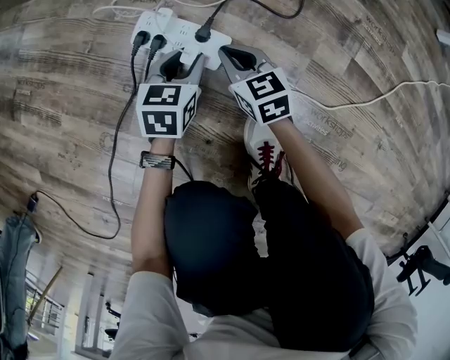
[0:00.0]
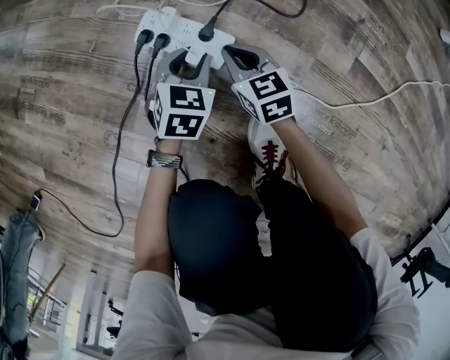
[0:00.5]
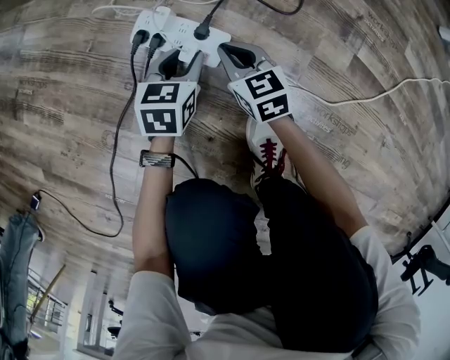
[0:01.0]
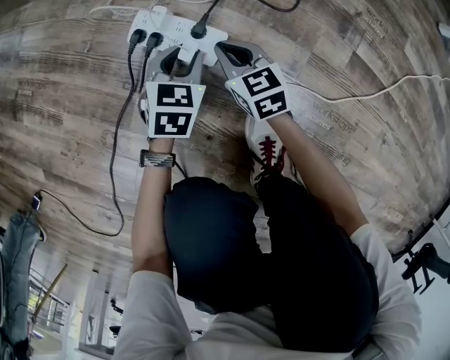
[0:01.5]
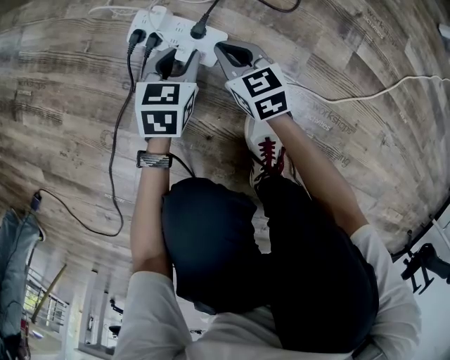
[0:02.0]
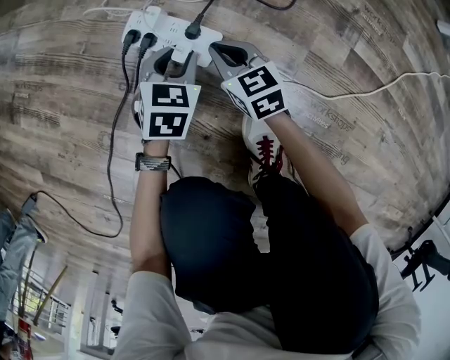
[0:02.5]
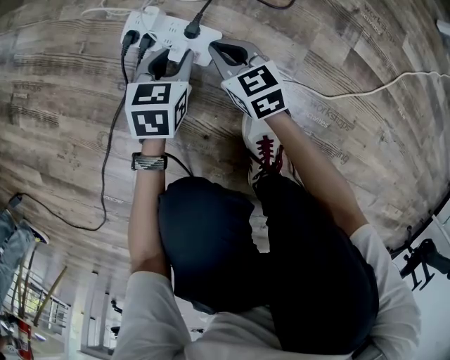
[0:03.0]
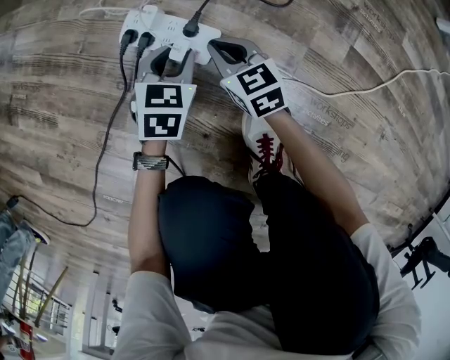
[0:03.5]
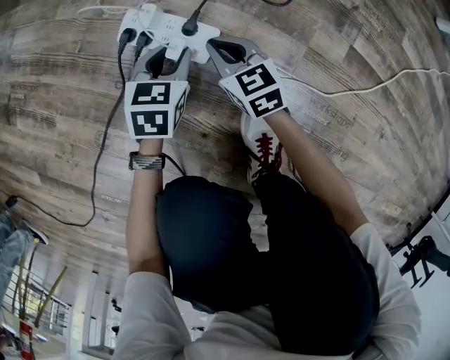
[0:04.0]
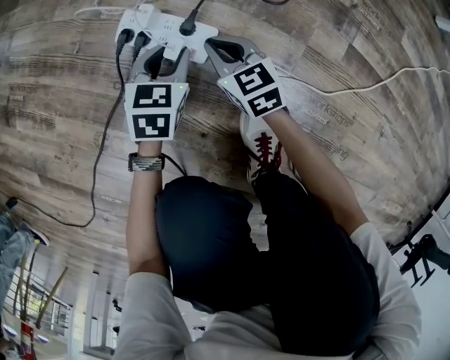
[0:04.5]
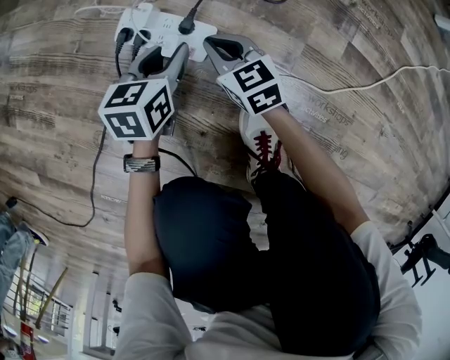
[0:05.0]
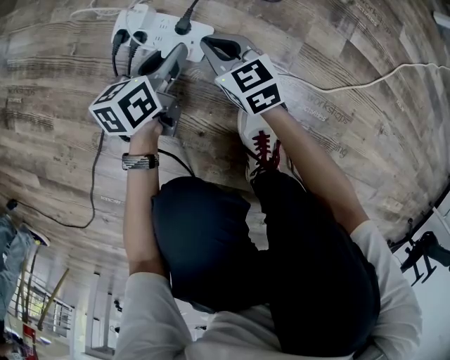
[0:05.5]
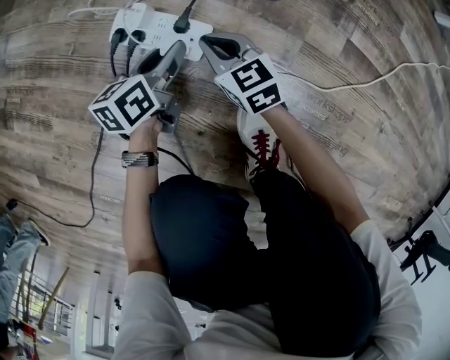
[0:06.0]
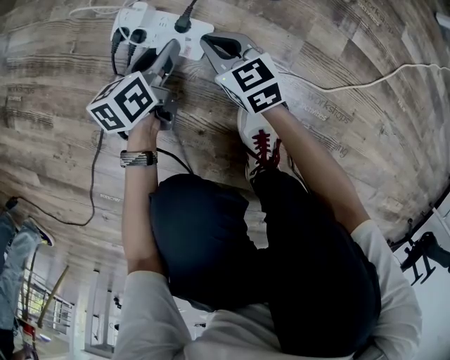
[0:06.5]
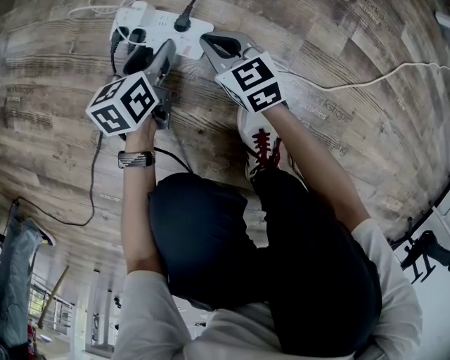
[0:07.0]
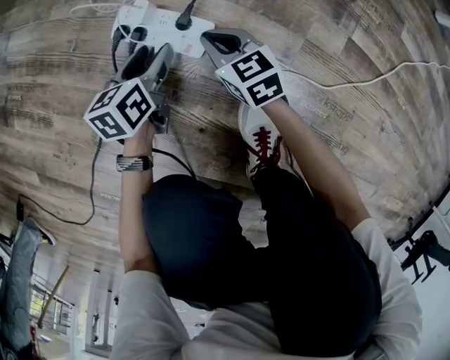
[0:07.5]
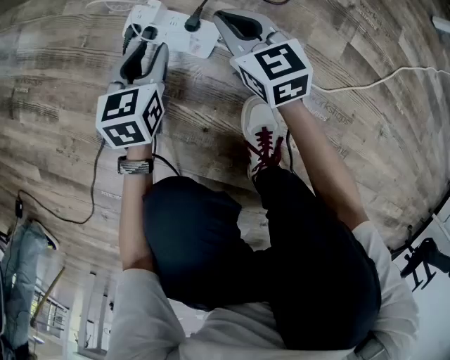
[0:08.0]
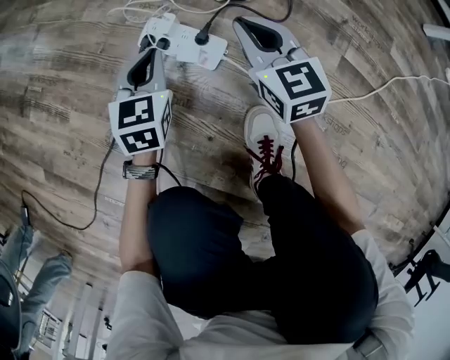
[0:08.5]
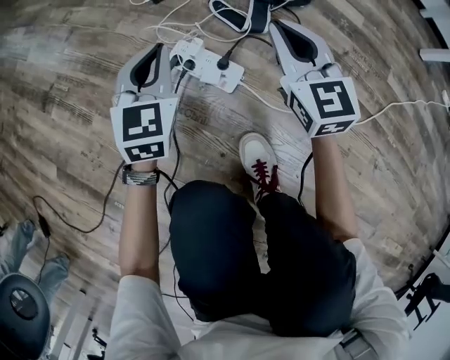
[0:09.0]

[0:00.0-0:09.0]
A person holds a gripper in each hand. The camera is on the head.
0:00.0 to 0:04.5: The grippers make only small movements.
0:04.5 to 0:07.0: The left gripper turns by some 30 degrees, and opens up.
0:07.0 to 0:09.0: The grippers both shift upward by approximately 25 cm. The left gripper rotates some 50 degrees, and closes its fingers, while the right gripper swivels roughly 30 degrees.

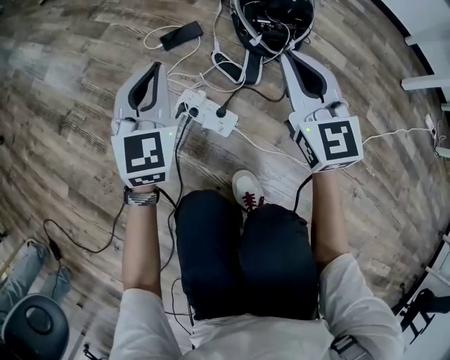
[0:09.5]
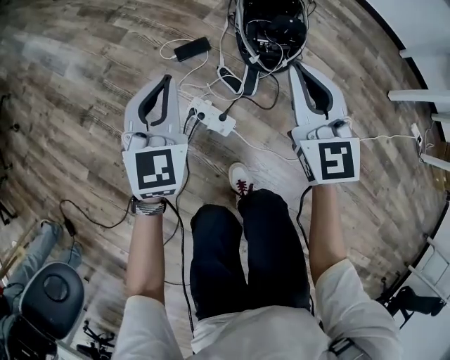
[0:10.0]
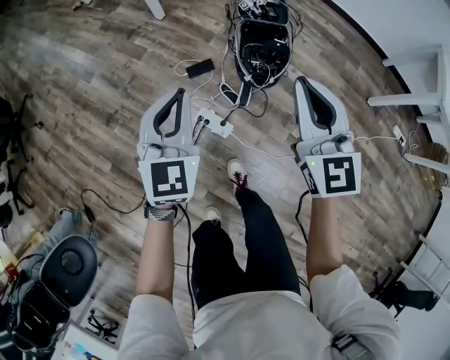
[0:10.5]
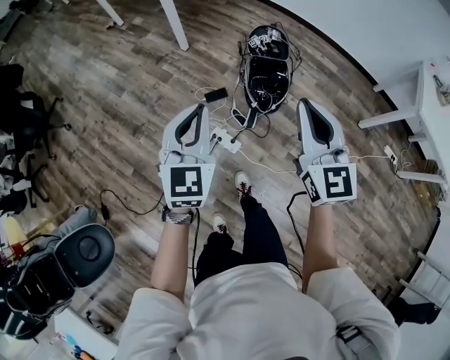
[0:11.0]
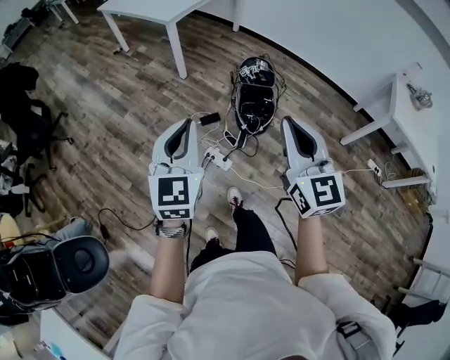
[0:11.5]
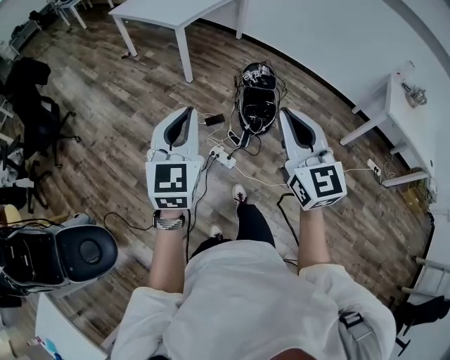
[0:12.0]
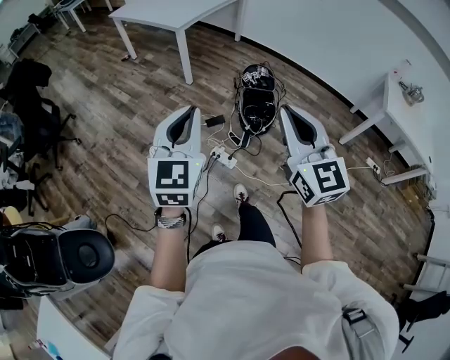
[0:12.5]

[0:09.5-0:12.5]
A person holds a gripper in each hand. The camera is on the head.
0:09.5 to 0:11.0: Both grippers move upward, approximately 60 cm.
0:11.0 to 0:12.5: Both grippers travel together backward, upward and to the left, some 30 cm.

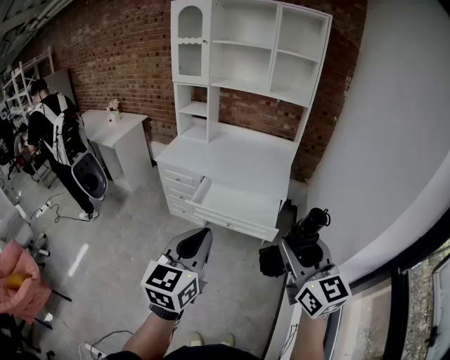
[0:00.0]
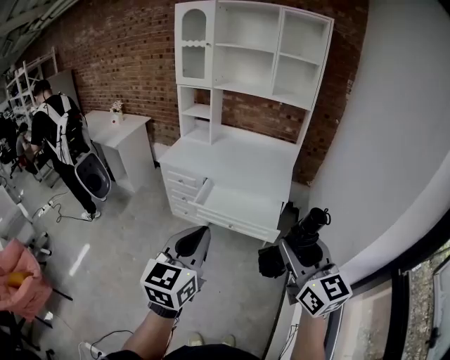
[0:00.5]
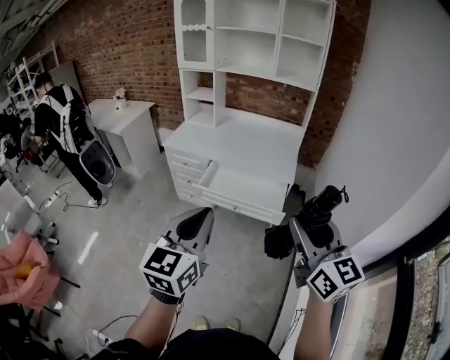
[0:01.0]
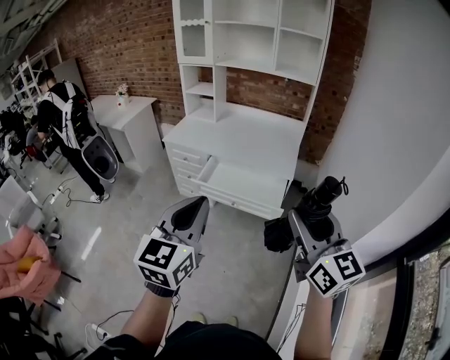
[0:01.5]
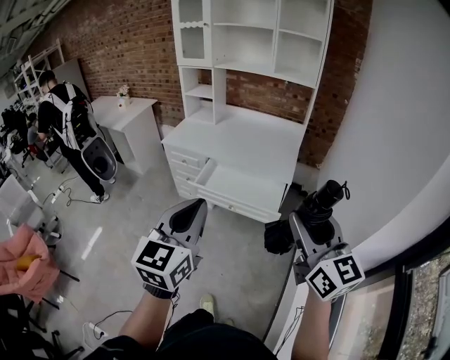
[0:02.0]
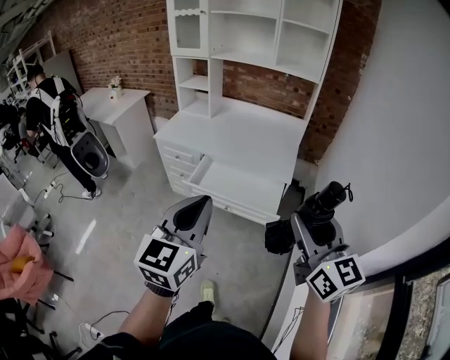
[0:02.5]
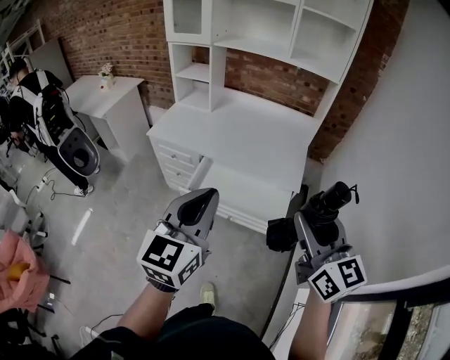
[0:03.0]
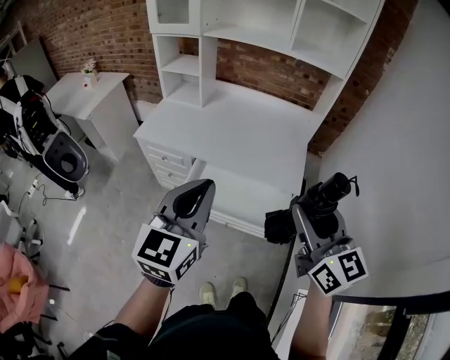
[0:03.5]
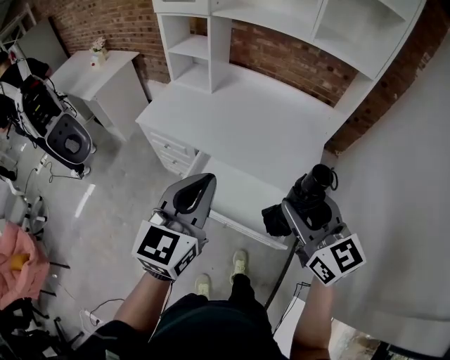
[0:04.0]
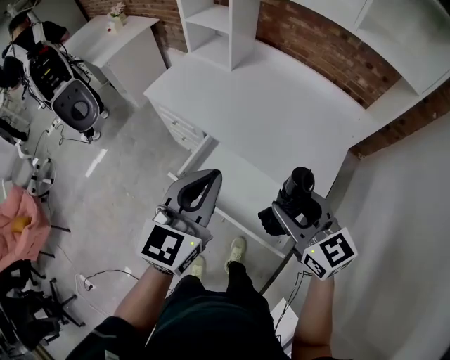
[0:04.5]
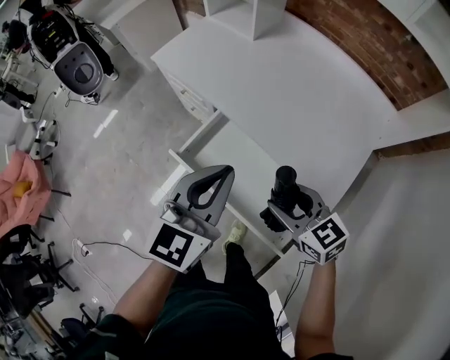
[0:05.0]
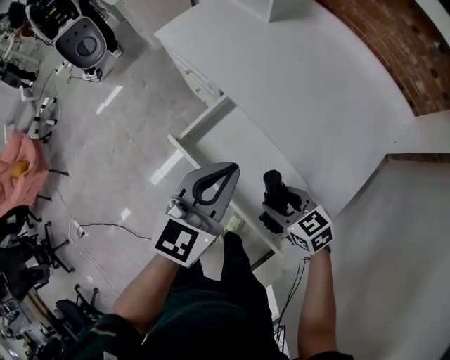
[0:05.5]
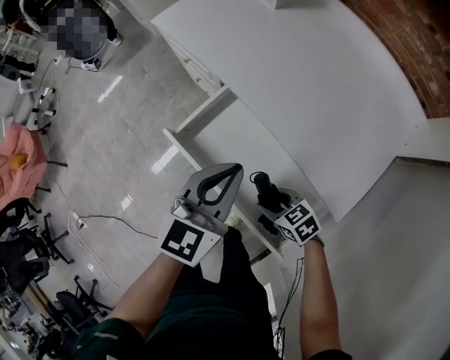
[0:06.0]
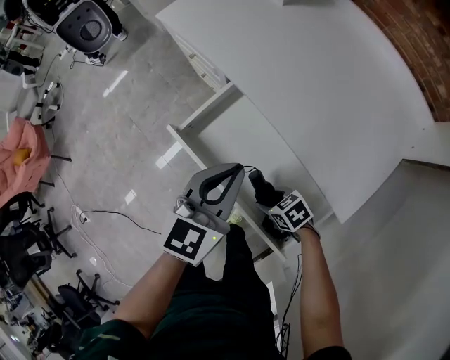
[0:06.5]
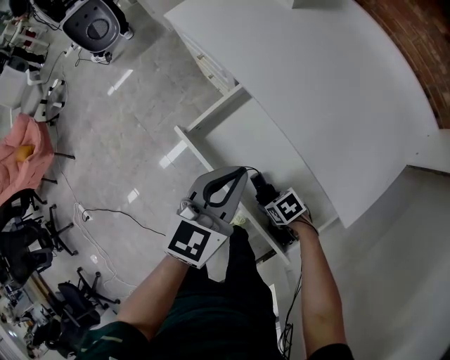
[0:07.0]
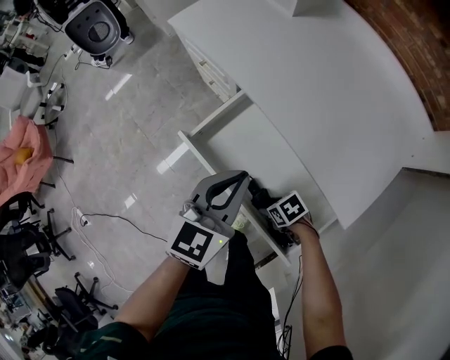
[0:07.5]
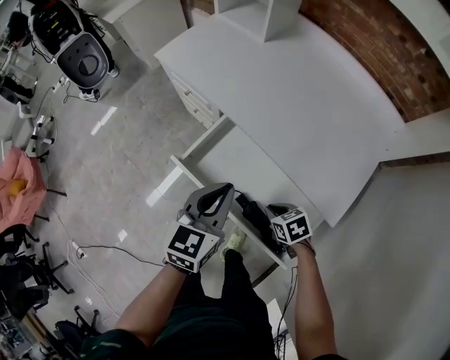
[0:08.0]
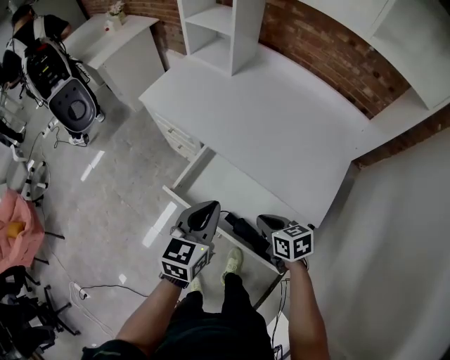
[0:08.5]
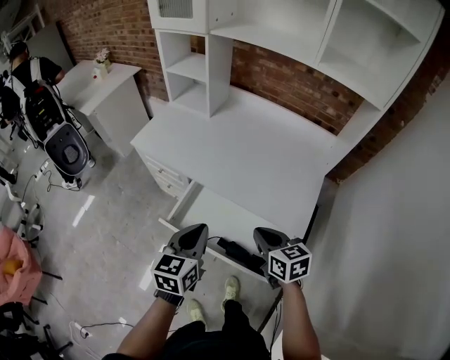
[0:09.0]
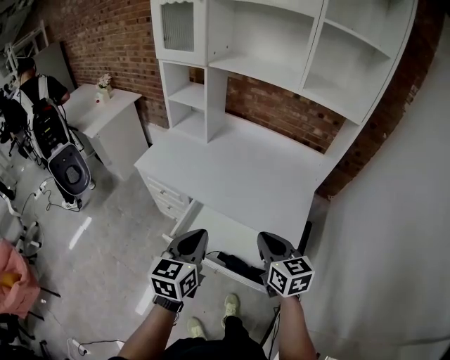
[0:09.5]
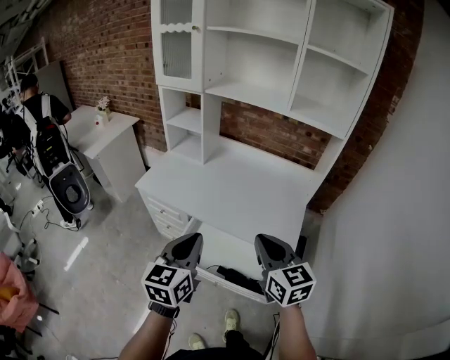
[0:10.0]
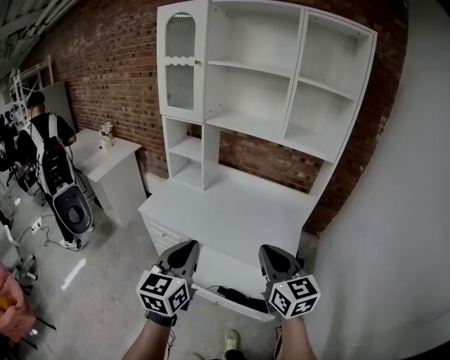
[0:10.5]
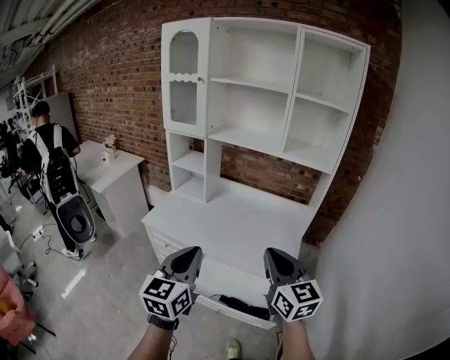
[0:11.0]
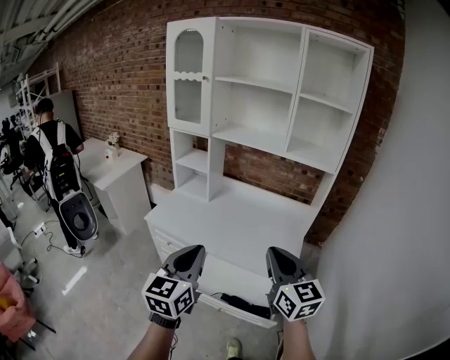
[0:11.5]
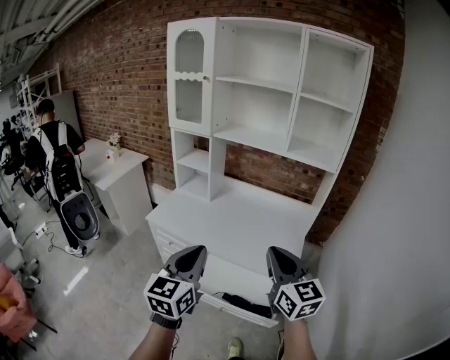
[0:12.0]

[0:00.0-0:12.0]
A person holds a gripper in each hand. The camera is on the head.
0:00.0 to 0:02.0: The two grippers go some 5 cm to the right.
0:02.0 to 0:04.0: The pair of grippers is taken forward, about 40 cm. The right gripper swivels approximately 20 degrees.
0:04.0 to 0:06.0: The left gripper heads downward, covering some 25 cm, while the right gripper heads downward, covering about 50 cm, and points its fingers about 40 degrees further downward.
0:06.0 to 0:08.0: The right gripper goes downward and returns, roughly 10 cm each way, rotates approximately 20 degrees, and closes its fingers.
0:08.0 to 0:10.0: The right gripper is displaced upward by about 40 cm, and tips its fingers upward by roughly 50 degrees, while the left gripper heads upward, covering about 25 cm.
0:10.0 to 0:12.0: Both grippers travel together upward, some 10 cm.

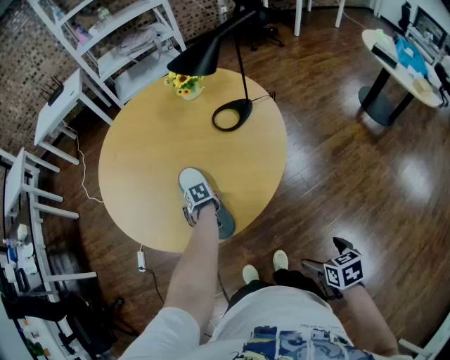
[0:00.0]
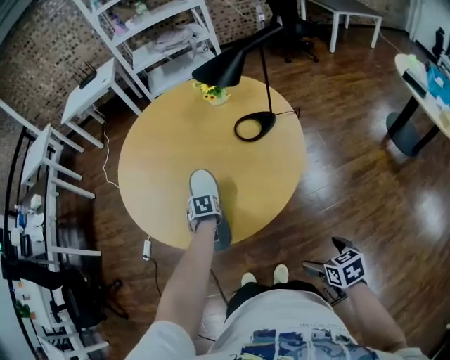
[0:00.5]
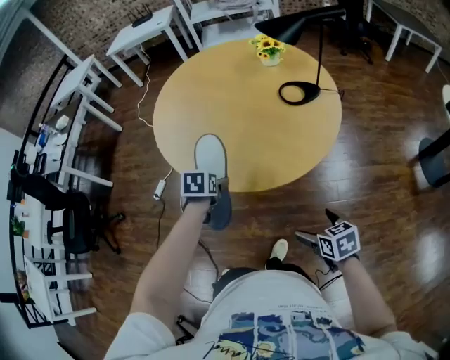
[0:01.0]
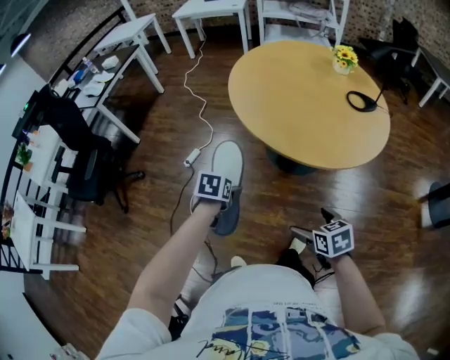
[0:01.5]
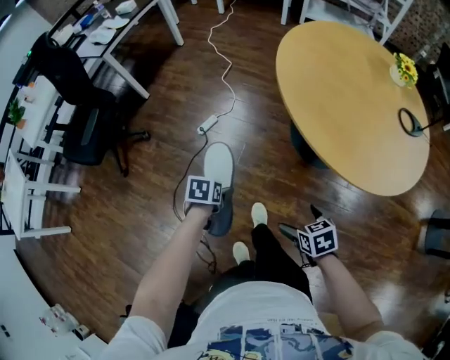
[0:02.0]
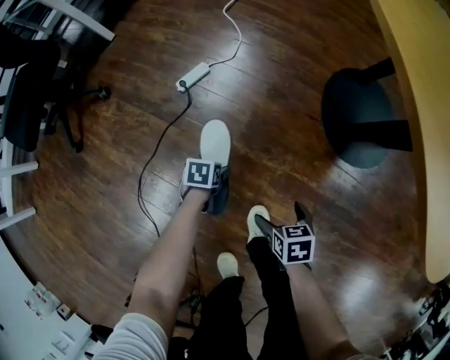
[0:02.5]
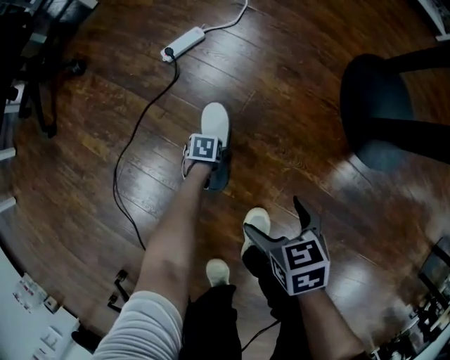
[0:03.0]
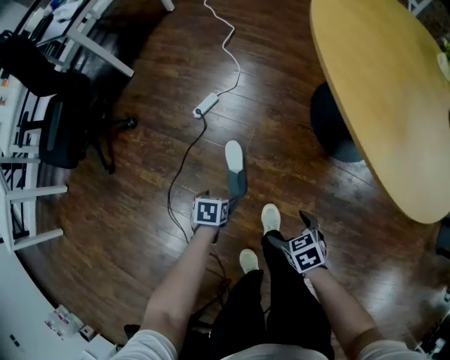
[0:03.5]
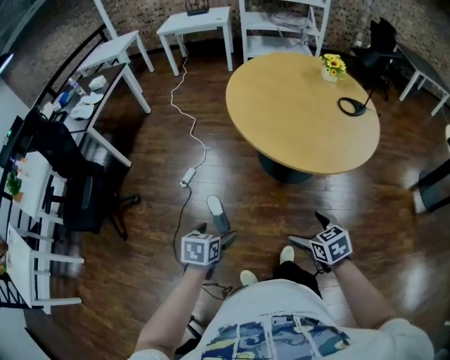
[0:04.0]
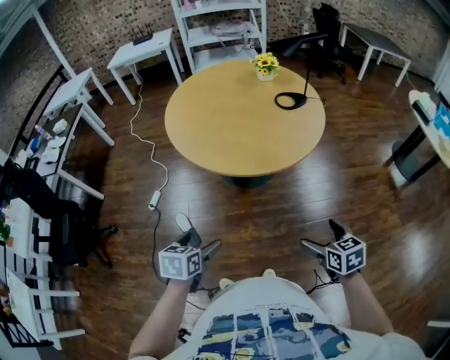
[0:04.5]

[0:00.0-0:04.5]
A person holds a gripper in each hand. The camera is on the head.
0:00.0 to 0:02.0: Both grippers are carried to the left, some 60 cm. The left gripper changes its angle by some 20 degrees; the right gripper rotates around the line of its fingers by some 50 degrees, counterclockwise from behind.
0:02.0 to 0:04.5: The right gripper moves some 60 cm downward and comes back, and swivels some 40 degrees. Meanwhile the left gripper goes downward and returns, some 80 cm each way, and changes its angle by about 30 degrees.
